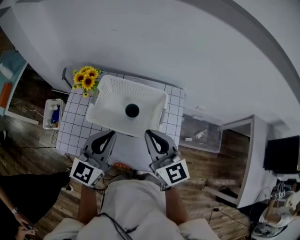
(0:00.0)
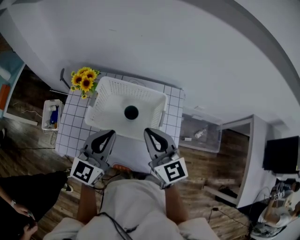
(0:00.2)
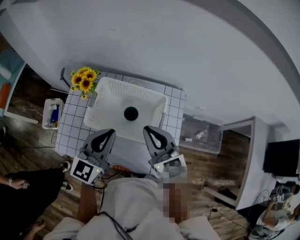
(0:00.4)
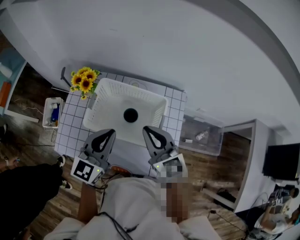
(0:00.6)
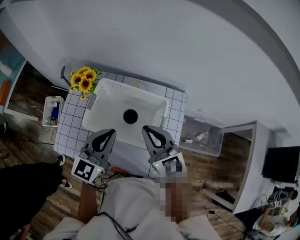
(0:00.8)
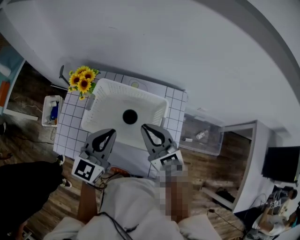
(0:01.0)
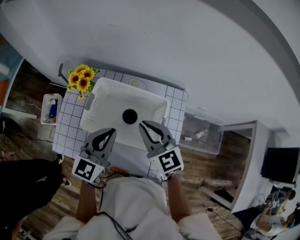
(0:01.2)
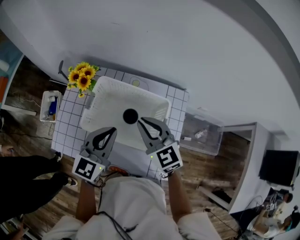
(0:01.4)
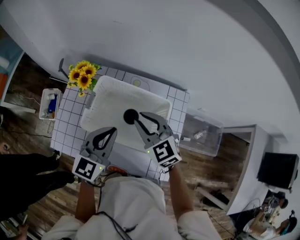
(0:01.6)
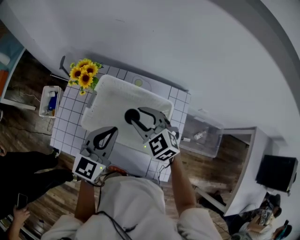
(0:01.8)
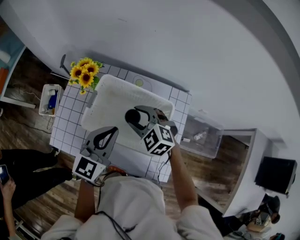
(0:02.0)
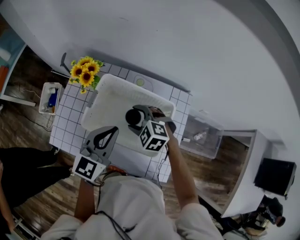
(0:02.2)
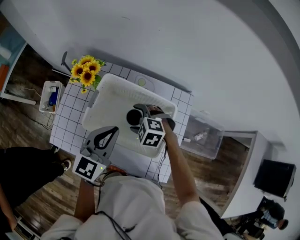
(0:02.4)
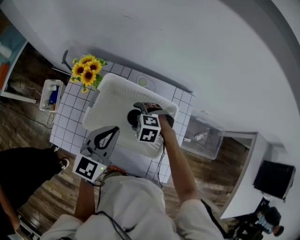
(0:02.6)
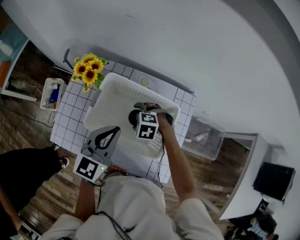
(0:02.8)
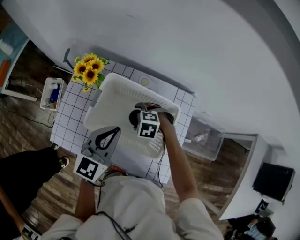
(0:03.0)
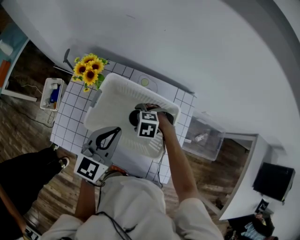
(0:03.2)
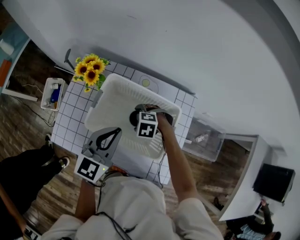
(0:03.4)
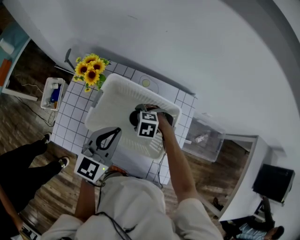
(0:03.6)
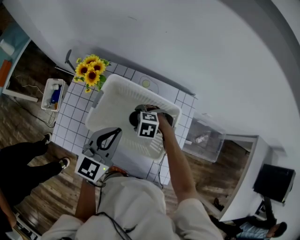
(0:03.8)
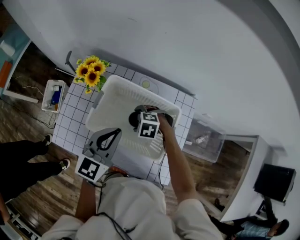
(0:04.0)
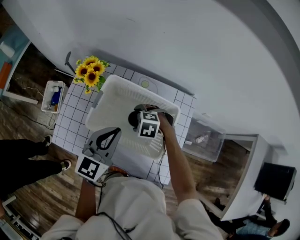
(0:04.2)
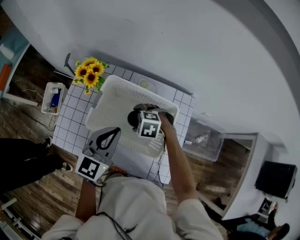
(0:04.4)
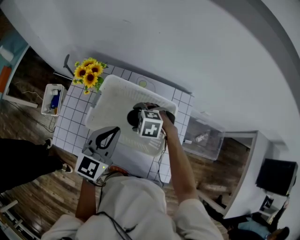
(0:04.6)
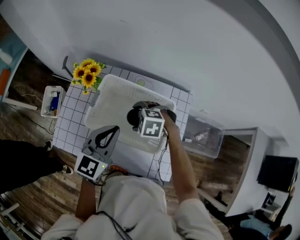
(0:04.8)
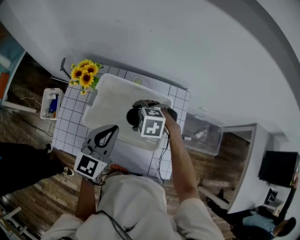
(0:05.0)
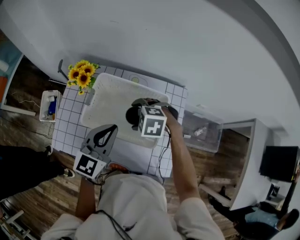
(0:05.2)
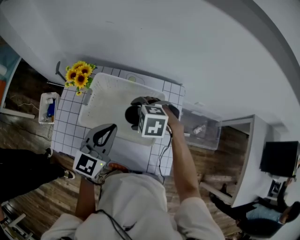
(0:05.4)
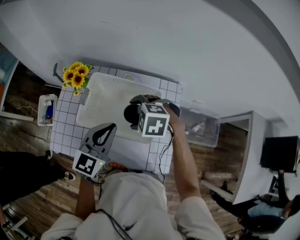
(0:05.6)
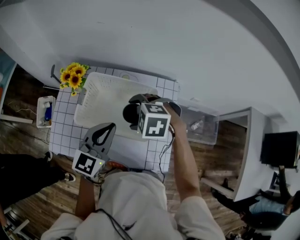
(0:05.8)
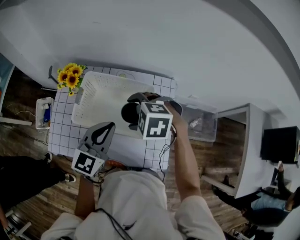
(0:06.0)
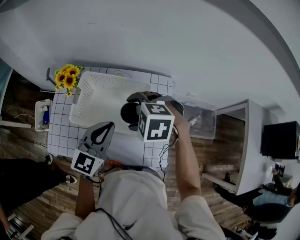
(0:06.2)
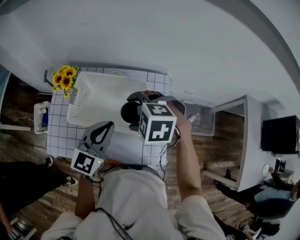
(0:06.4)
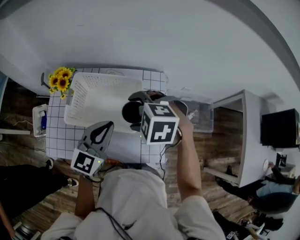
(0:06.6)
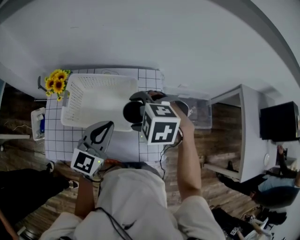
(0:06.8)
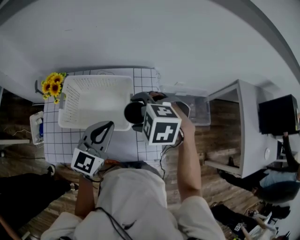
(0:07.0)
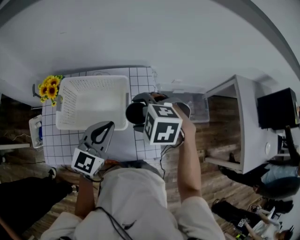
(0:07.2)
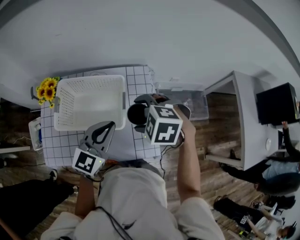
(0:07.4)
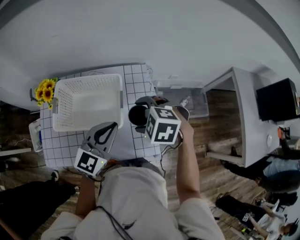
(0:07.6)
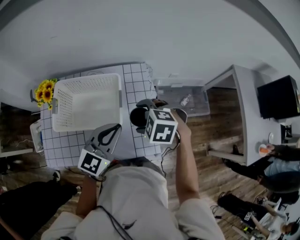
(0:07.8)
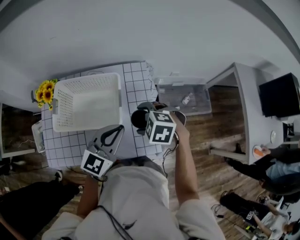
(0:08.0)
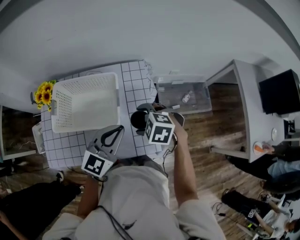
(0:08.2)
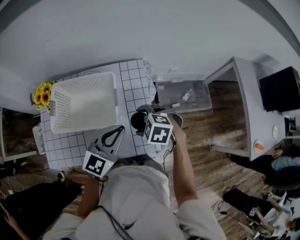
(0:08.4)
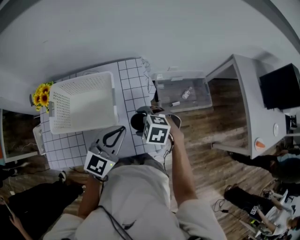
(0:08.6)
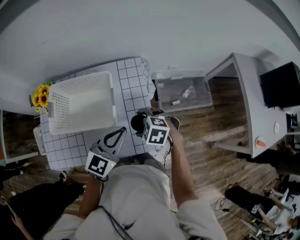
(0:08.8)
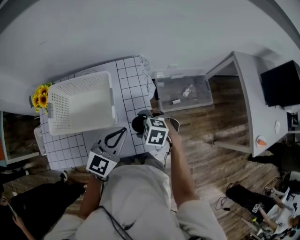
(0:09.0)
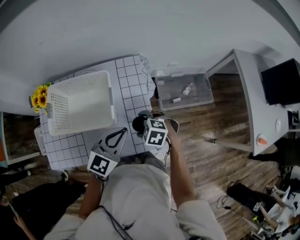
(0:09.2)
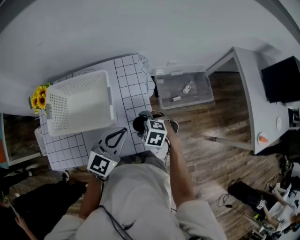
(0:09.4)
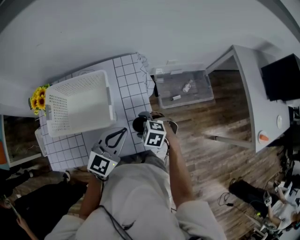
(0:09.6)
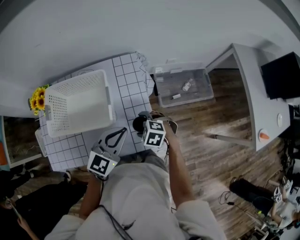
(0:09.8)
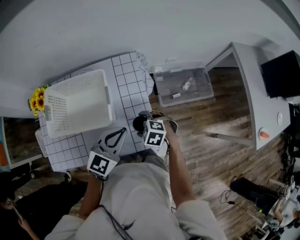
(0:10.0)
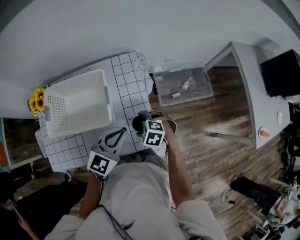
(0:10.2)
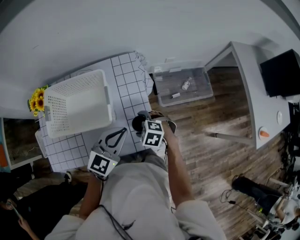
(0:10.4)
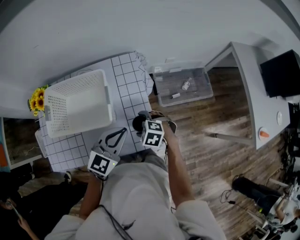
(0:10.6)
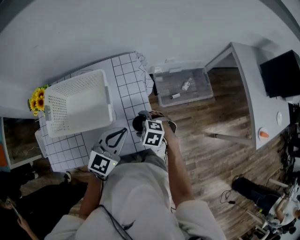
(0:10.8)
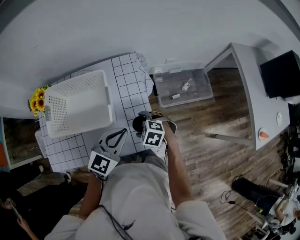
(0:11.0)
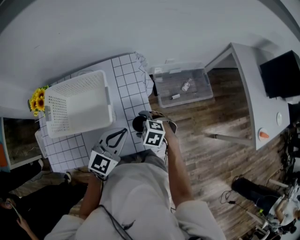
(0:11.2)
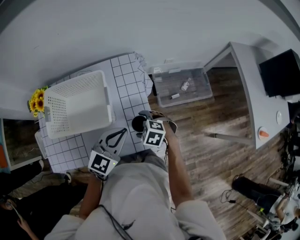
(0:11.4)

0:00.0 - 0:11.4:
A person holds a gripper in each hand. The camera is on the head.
0:00.0 - 0:01.4: The left gripper shifts roughly 10 cm forward. The right gripper heads forward and downward, covering approximately 10 cm, and changes its angle by approximately 30 degrees.
0:01.4 - 0:02.8: The right gripper heads downward, covering roughly 20 cm, points its fingers some 50 degrees further downward, and opens up.
0:02.8 - 0:04.2: The grippers make only small movements.
0:04.2 - 0:05.6: The left gripper moves roughly 5 cm, while the right gripper heads upward, covering approximately 15 cm.
0:05.6 - 0:07.2: The left gripper heads to the right and backward, covering some 10 cm; the right gripper is displaced to the right, backward and upward by approximately 15 cm.
0:07.2 - 0:08.6: The left gripper shifts roughly 10 cm to the right, while the right gripper goes roughly 15 cm downward.
0:08.6 - 0:10.0: The right gripper is displaced downward by some 10 cm.
0:10.0 - 0:11.4: The two grippers keep their place.

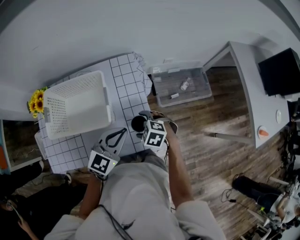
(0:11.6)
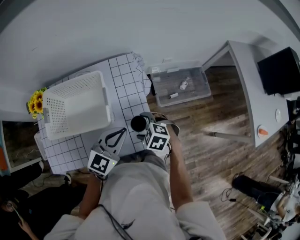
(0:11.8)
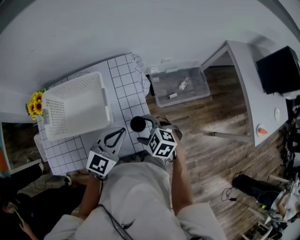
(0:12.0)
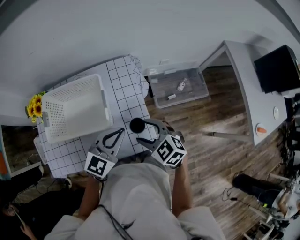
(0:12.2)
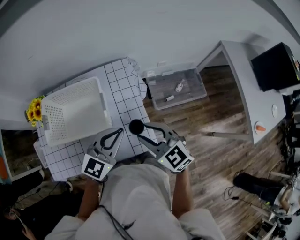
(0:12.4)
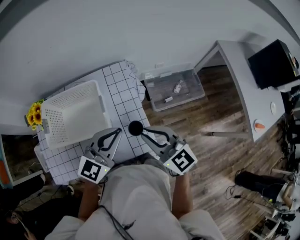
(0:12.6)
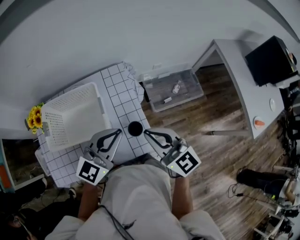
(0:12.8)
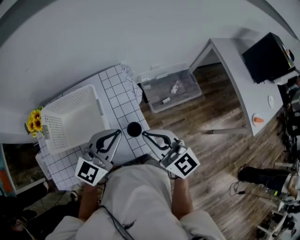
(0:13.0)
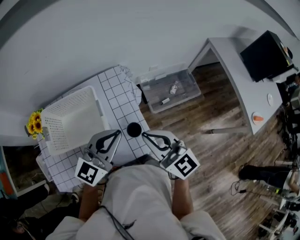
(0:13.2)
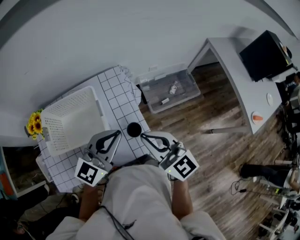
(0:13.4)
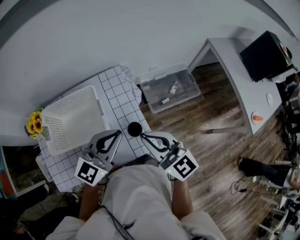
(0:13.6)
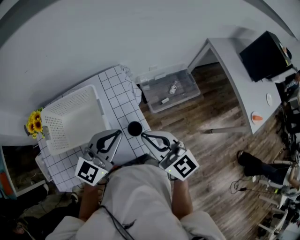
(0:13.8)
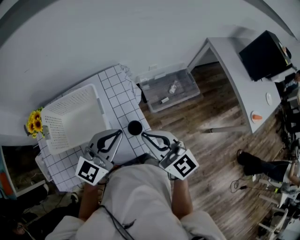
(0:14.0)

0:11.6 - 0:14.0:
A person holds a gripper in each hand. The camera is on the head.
0:11.6 - 0:12.8: The right gripper travels upward by some 25 cm, tilts its fingers some 60 degrees upward, and closes its fingers, while the left gripper is displaced upward by approximately 10 cm.
0:12.8 - 0:14.0: The grippers stay close to where they were, moving slightly.

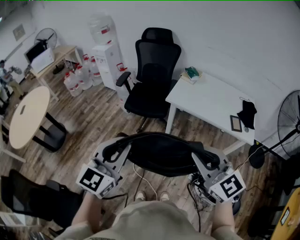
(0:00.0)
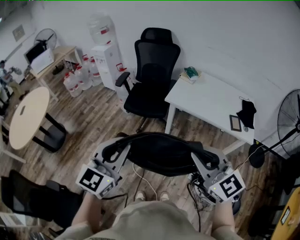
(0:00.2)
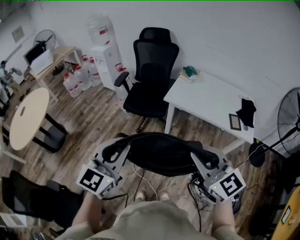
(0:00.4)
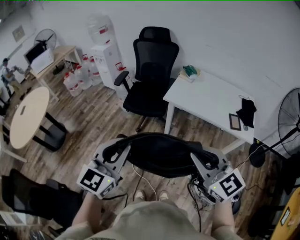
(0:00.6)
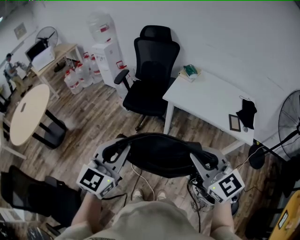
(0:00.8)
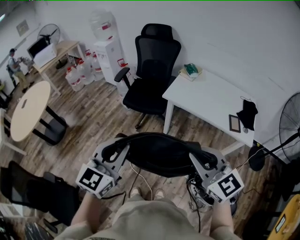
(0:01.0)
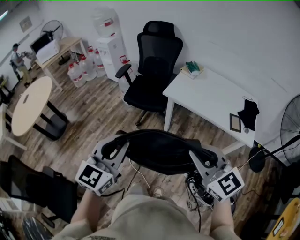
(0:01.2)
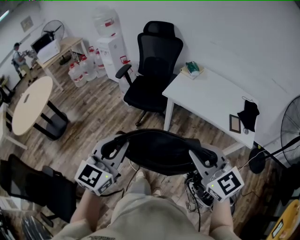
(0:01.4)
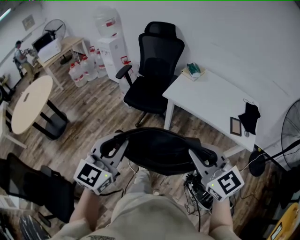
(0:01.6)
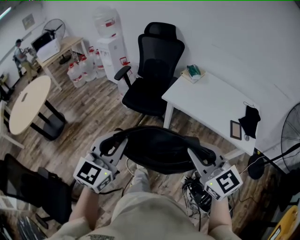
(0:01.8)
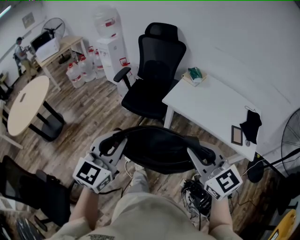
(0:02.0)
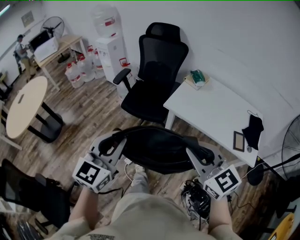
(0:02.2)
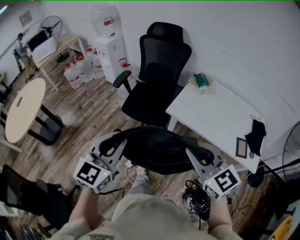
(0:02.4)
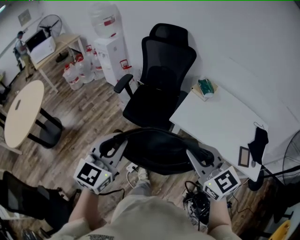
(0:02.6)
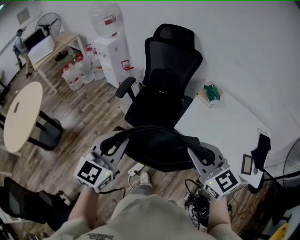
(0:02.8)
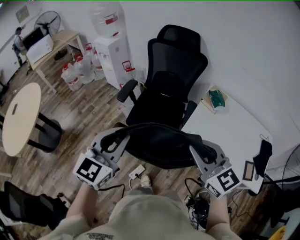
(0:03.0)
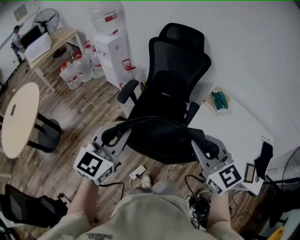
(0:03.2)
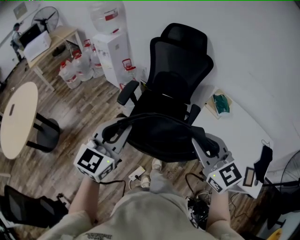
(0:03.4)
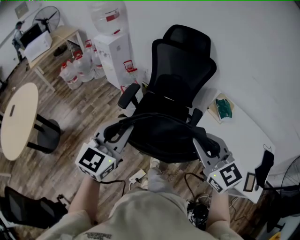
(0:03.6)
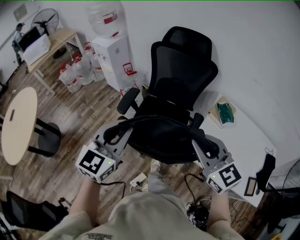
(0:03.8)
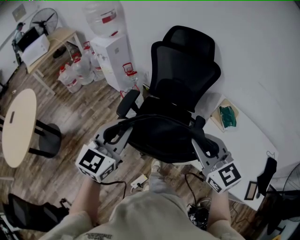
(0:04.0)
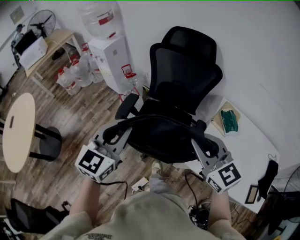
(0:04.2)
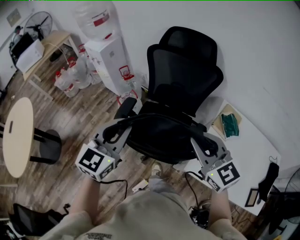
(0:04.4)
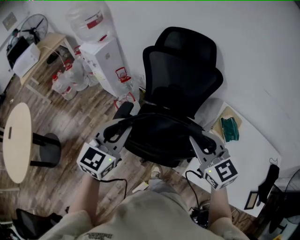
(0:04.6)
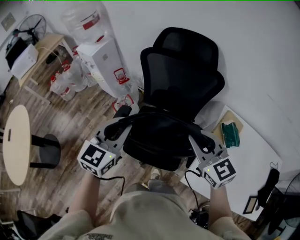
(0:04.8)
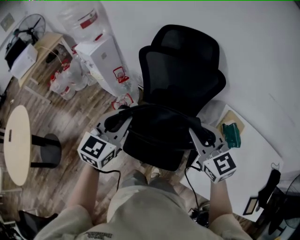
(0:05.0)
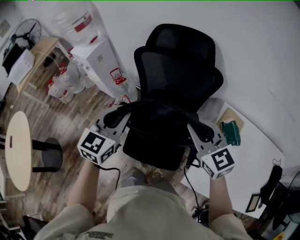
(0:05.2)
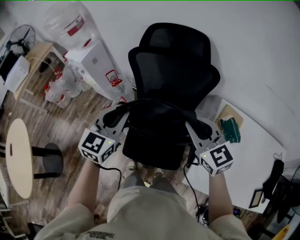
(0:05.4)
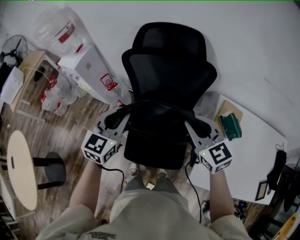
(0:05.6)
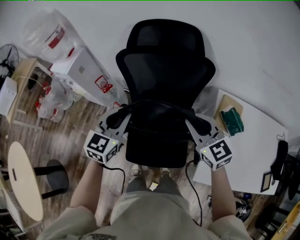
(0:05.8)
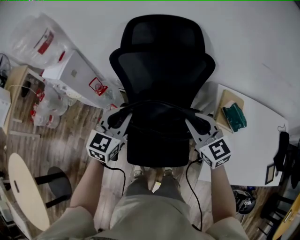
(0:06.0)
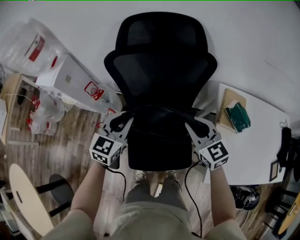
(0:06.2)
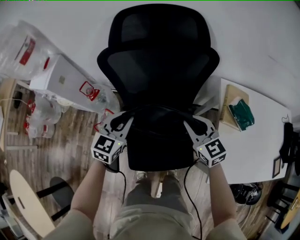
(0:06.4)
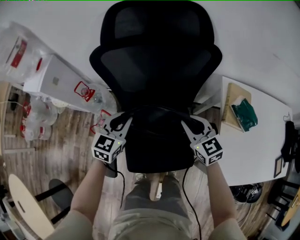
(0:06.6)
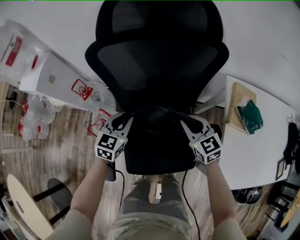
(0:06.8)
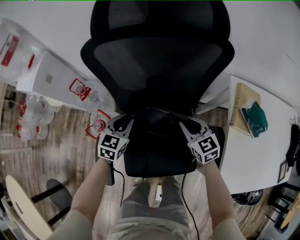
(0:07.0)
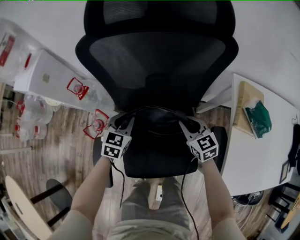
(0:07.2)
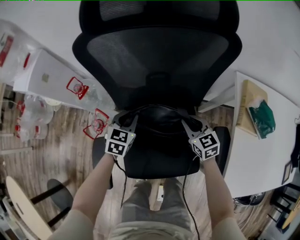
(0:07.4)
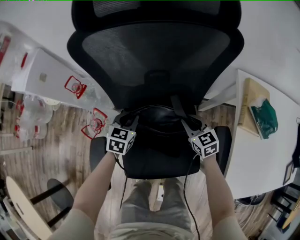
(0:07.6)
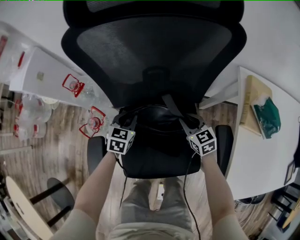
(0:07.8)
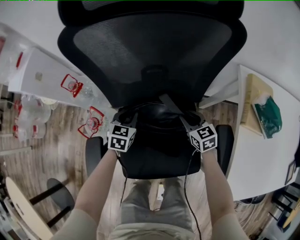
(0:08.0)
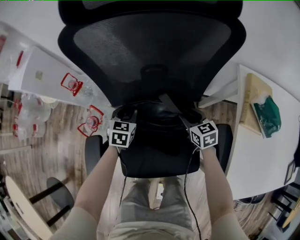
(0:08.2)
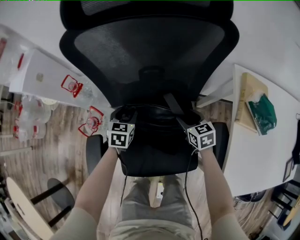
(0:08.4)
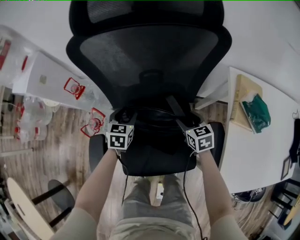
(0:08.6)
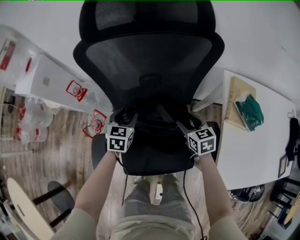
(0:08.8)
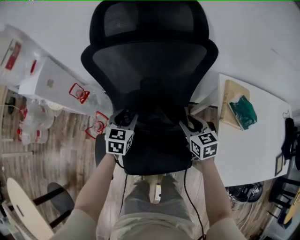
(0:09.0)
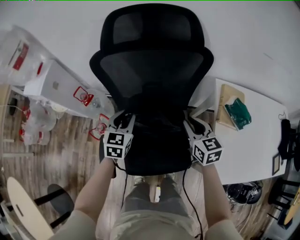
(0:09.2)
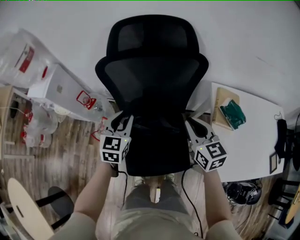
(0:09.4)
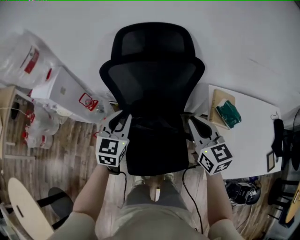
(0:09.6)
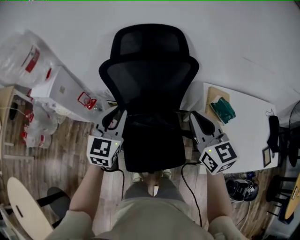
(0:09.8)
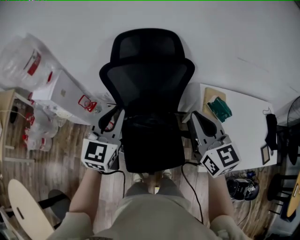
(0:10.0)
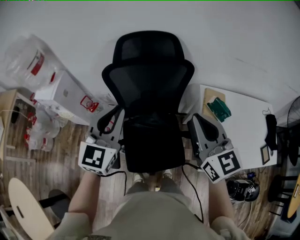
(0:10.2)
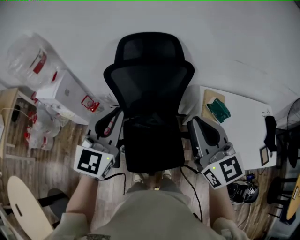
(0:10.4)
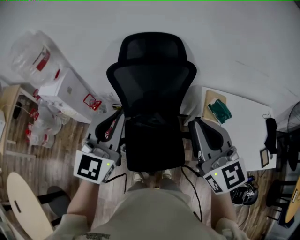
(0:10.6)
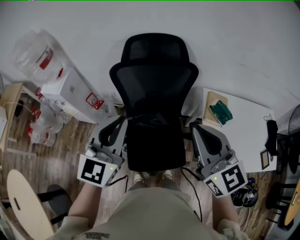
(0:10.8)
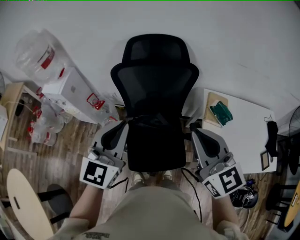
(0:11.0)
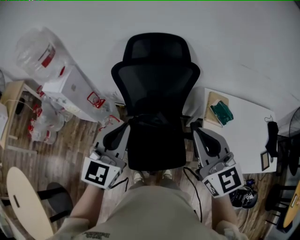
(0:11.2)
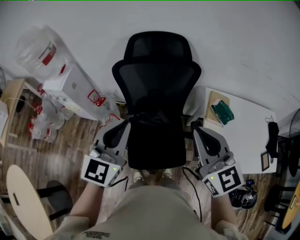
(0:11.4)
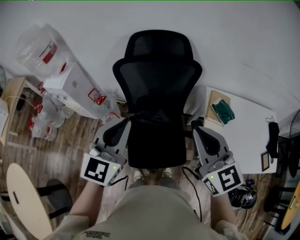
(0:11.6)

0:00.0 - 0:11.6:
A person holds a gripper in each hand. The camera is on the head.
0:00.0 - 0:01.4: The grippers both shift to the right by approximately 10 cm.
0:01.4 - 0:02.8: The grippers both shift forward by some 40 cm.
0:02.8 - 0:04.4: Both grippers travel together forward, about 40 cm.
0:04.4 - 0:05.8: The grippers both shift forward and downward by about 25 cm.
0:05.8 - 0:07.2: The right gripper is displaced downward by some 35 cm, and rotates approximately 20 degrees; the left gripper heads downward and forward, covering roughly 35 cm.
0:07.2 - 0:08.8: The right gripper travels downward and back again, roughly 10 cm each way, and opens its fingers. Meanwhile the left gripper reaches roughly 10 cm downward, then returns, and opens.
0:08.8 - 0:10.2: Both grippers move upward, approximately 50 cm. The left gripper angles its fingers upward, by roughly 30 degrees, and closes. Meanwhile the right gripper angles its fingers upward, by approximately 40 degrees, and closes up.
0:10.2 - 0:11.6: Both grippers travel together backward, some 5 cm.
